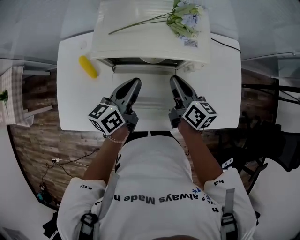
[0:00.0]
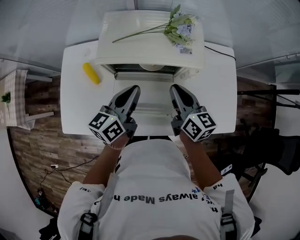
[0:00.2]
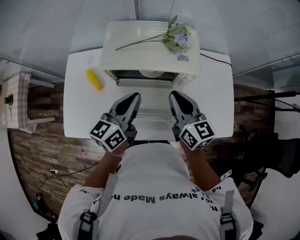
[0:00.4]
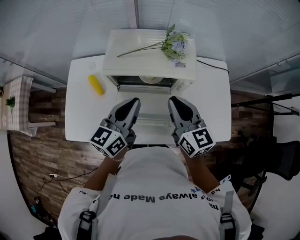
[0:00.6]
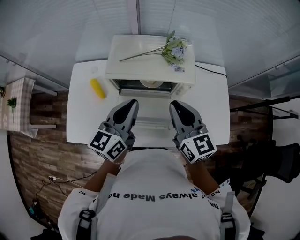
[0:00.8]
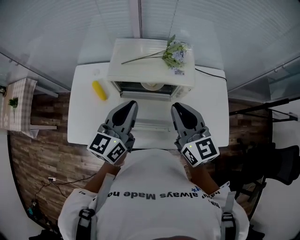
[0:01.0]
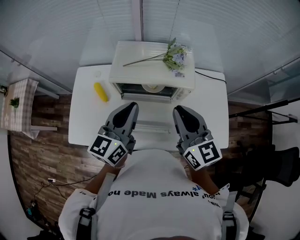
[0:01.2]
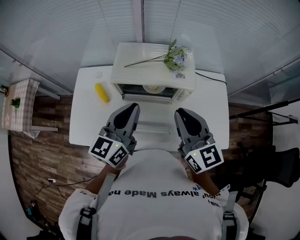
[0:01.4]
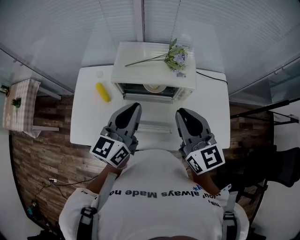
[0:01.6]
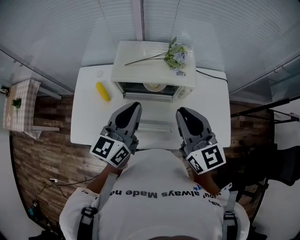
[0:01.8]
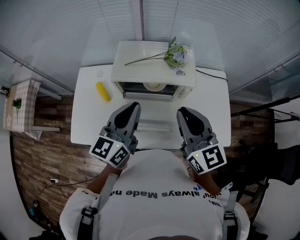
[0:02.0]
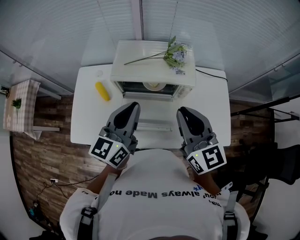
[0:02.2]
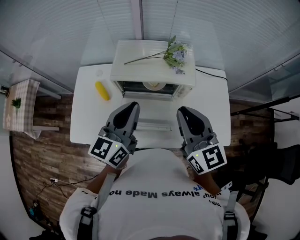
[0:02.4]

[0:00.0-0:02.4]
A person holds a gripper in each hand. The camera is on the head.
0:00.0 to 0:01.2: The two grippers go some 20 cm upward. The left gripper rotates about 30 degrees, while the right gripper turns by approximately 40 degrees.
0:01.2 to 0:02.4: The grippers move only a little.

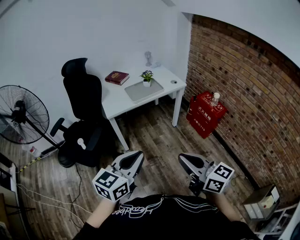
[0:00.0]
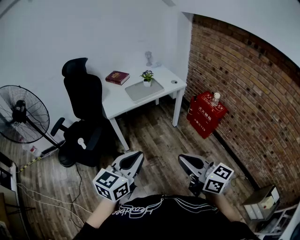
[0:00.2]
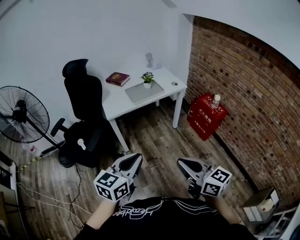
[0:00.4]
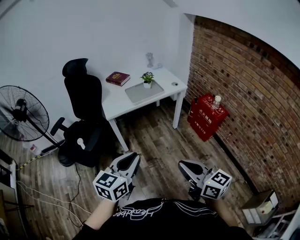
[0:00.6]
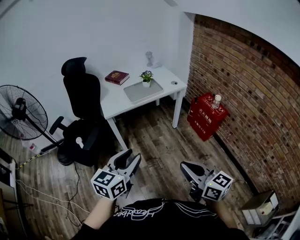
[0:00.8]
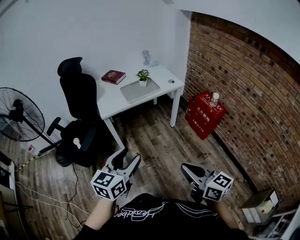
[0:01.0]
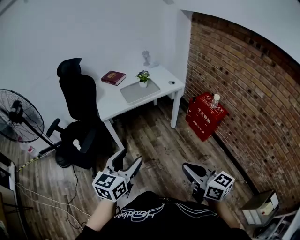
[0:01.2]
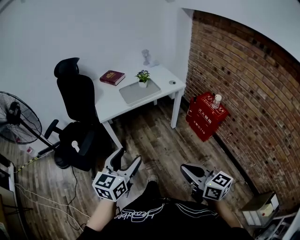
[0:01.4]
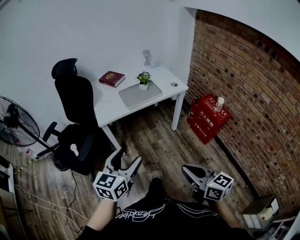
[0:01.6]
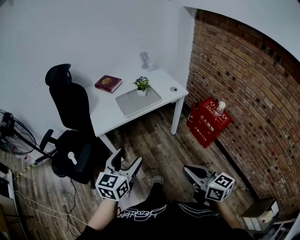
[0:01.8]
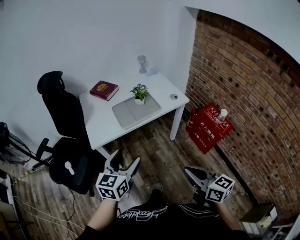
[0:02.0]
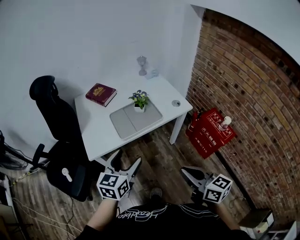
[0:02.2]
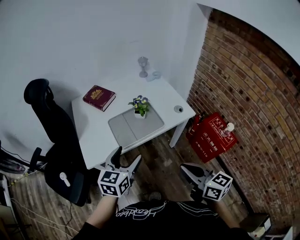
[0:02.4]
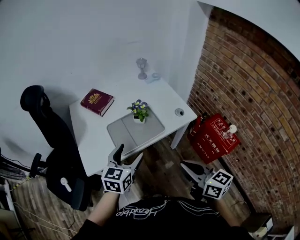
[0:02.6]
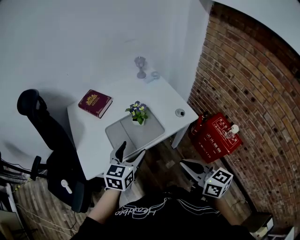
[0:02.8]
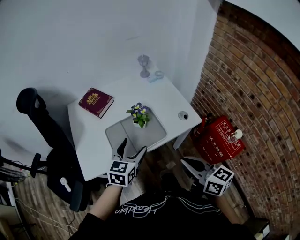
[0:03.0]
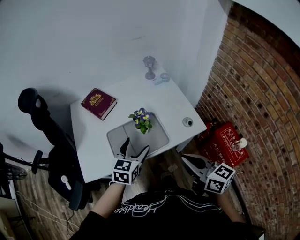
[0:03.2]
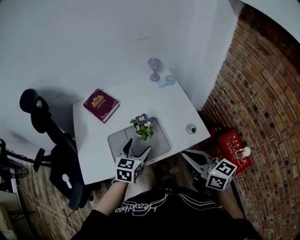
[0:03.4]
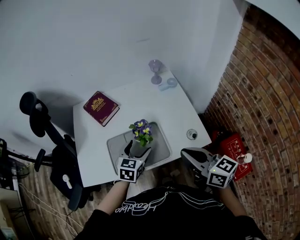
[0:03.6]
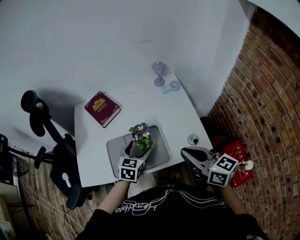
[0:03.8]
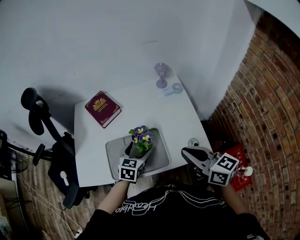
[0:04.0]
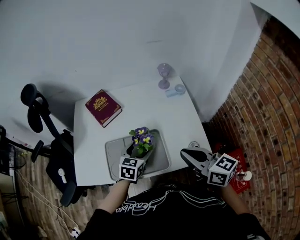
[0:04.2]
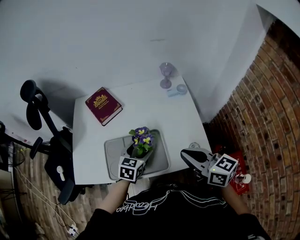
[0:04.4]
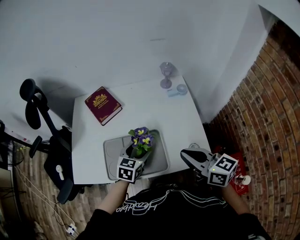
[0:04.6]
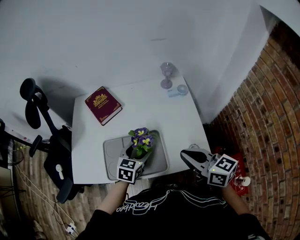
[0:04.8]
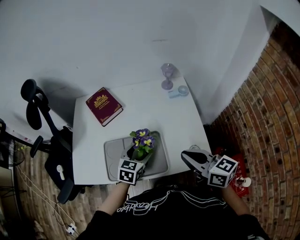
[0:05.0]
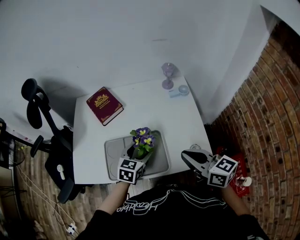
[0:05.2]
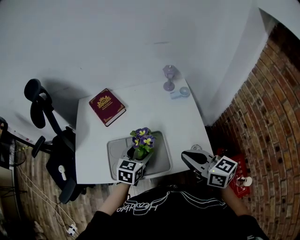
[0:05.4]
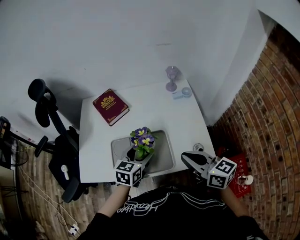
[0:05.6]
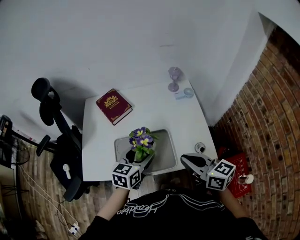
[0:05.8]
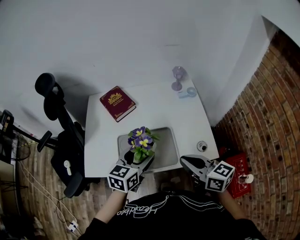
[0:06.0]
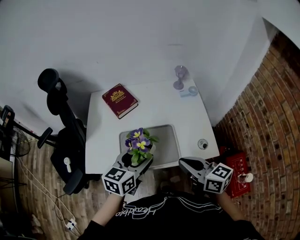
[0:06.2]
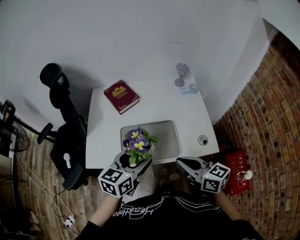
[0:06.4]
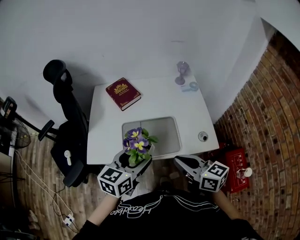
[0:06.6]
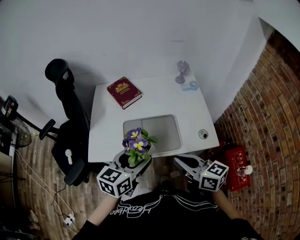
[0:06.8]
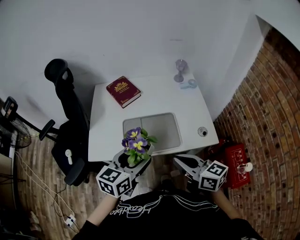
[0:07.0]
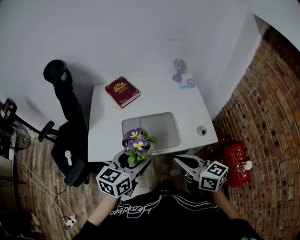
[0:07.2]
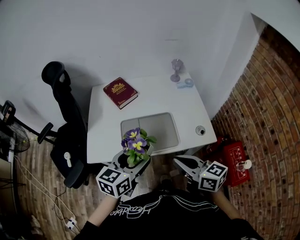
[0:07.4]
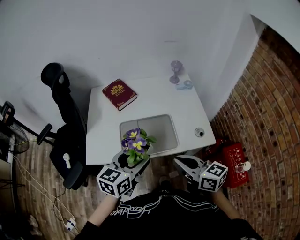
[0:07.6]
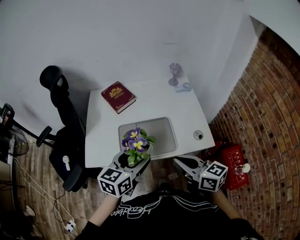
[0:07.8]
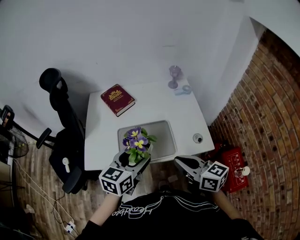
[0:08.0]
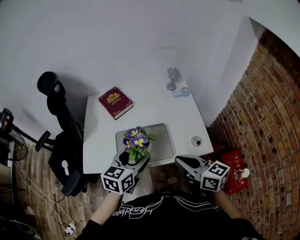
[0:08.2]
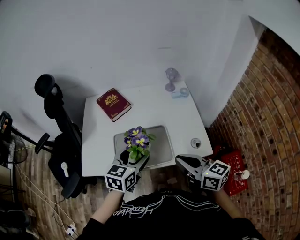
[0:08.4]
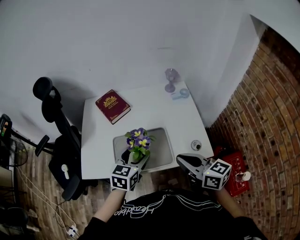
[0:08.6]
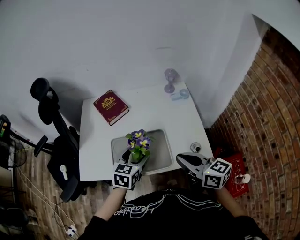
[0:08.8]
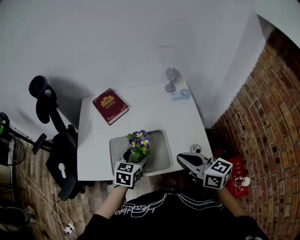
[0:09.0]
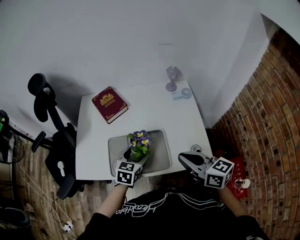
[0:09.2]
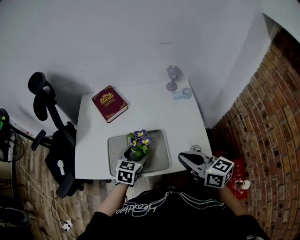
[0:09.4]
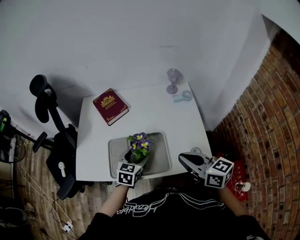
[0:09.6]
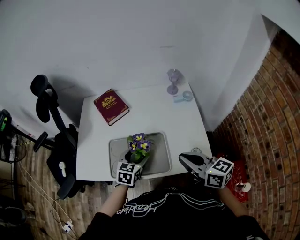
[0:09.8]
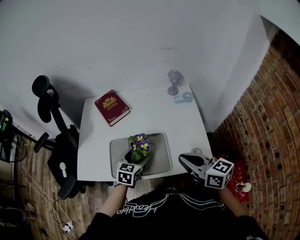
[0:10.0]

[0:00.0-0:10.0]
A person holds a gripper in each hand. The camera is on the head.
0:00.0 to 0:01.4: The left gripper goes roughly 10 cm forward and downward, and opens up; the right gripper goes roughly 10 cm downward and to the right.
0:01.4 to 0:02.8: The two grippers travel together, forward, roughly 50 cm.
0:02.8 to 0:04.2: The right gripper shifts some 25 cm forward, and turns by approximately 20 degrees. Meanwhile the left gripper travels forward, downward and to the right by some 20 cm, and rotates some 20 degrees.
0:04.2 to 0:05.8: The left gripper goes about 10 cm upward.
0:05.8 to 0:07.2: The left gripper is displaced backward, to the left and upward by about 15 cm; the right gripper shifts about 15 cm backward and to the left.
0:07.2 to 0:08.6: The left gripper travels forward, to the right and downward by some 15 cm, while the right gripper shifts some 10 cm forward and to the right.
0:08.6 to 0:10.0: The left gripper shifts approximately 10 cm downward. The right gripper shifts by approximately 5 cm.

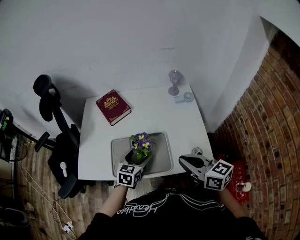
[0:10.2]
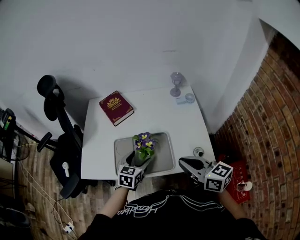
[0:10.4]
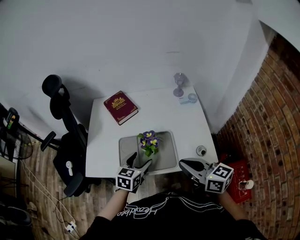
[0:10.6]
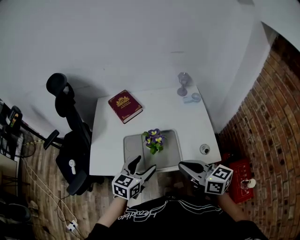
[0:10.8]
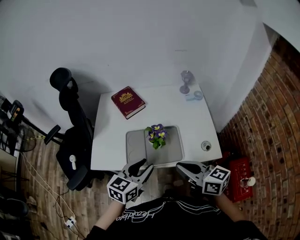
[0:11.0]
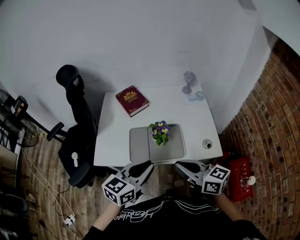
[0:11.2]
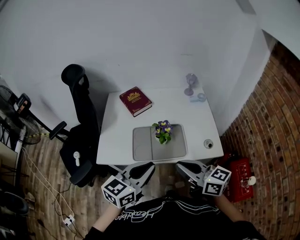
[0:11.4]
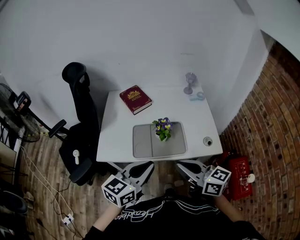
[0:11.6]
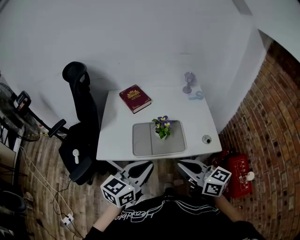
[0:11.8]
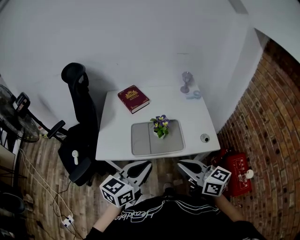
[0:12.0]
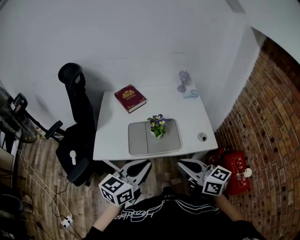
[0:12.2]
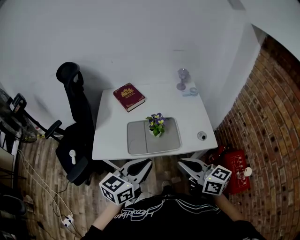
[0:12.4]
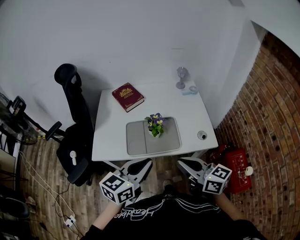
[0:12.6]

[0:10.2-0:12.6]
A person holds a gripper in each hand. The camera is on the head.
0:10.2 to 0:11.4: The left gripper is displaced upward and backward by some 25 cm, changes its angle by about 30 degrees, and closes its fingers. Meanwhile the right gripper goes approximately 15 cm to the left and backward.
0:11.4 to 0:12.6: The grippers stay close to where they were, moving slightly.

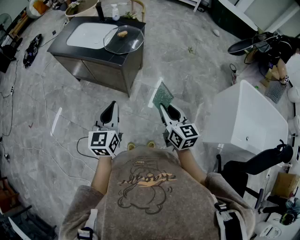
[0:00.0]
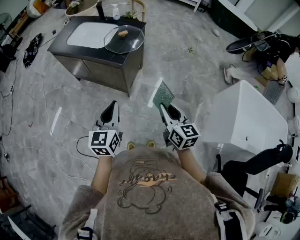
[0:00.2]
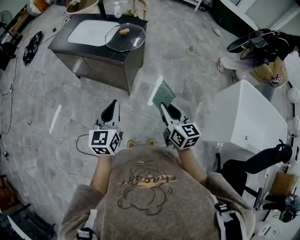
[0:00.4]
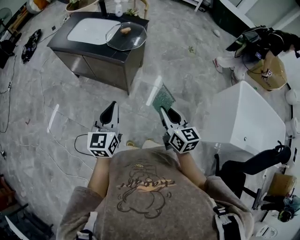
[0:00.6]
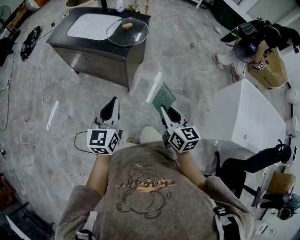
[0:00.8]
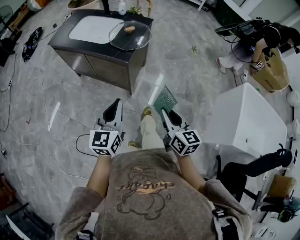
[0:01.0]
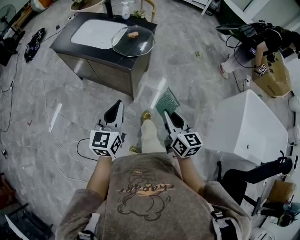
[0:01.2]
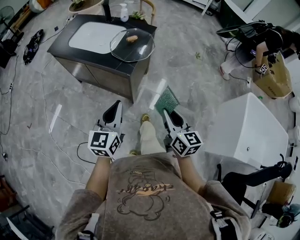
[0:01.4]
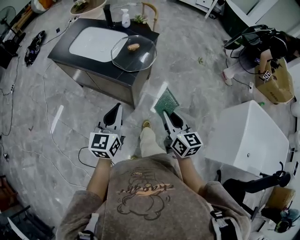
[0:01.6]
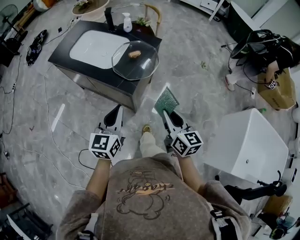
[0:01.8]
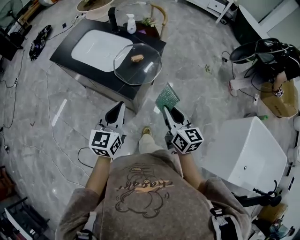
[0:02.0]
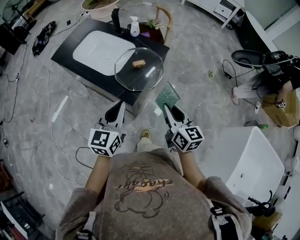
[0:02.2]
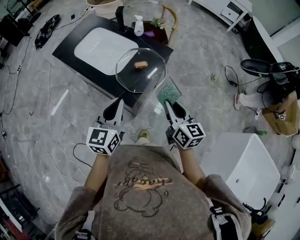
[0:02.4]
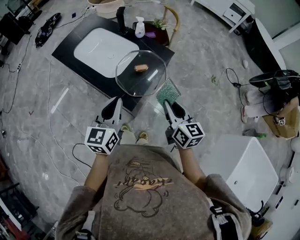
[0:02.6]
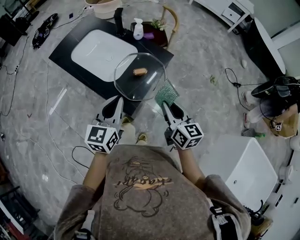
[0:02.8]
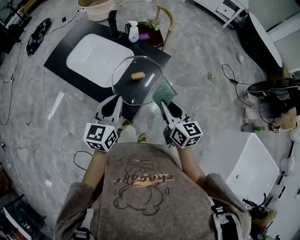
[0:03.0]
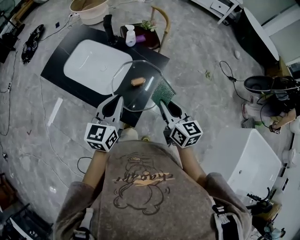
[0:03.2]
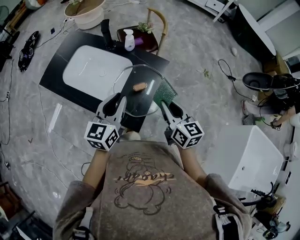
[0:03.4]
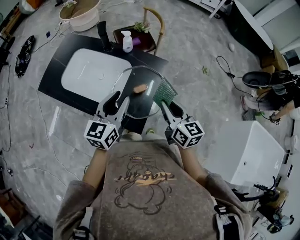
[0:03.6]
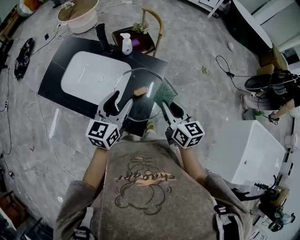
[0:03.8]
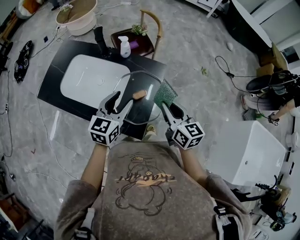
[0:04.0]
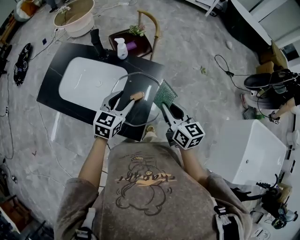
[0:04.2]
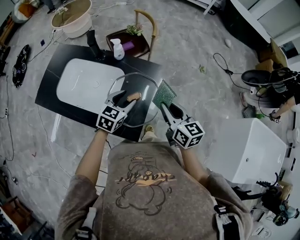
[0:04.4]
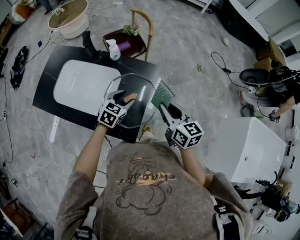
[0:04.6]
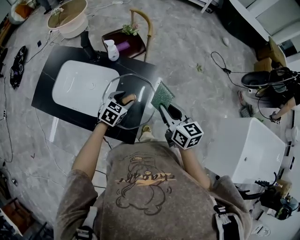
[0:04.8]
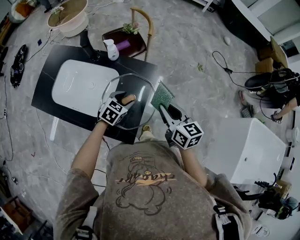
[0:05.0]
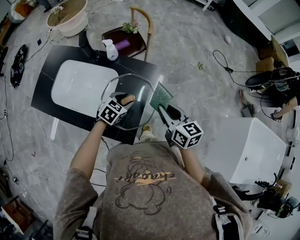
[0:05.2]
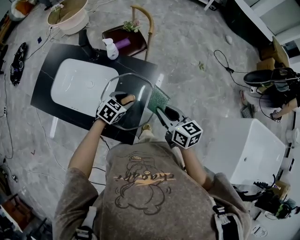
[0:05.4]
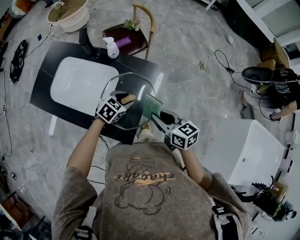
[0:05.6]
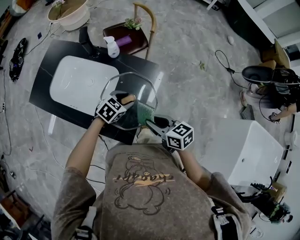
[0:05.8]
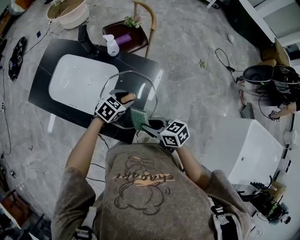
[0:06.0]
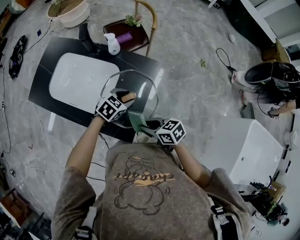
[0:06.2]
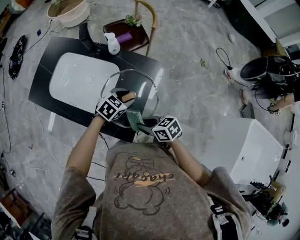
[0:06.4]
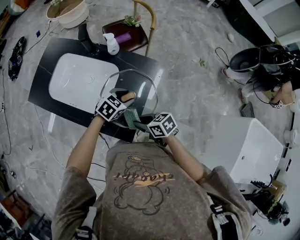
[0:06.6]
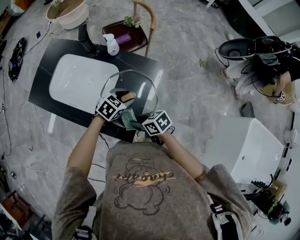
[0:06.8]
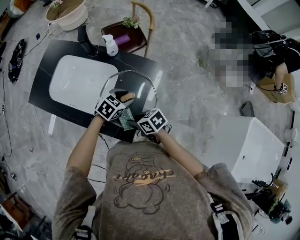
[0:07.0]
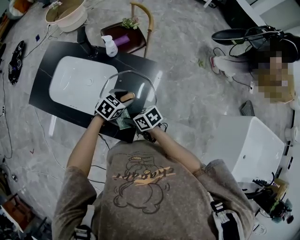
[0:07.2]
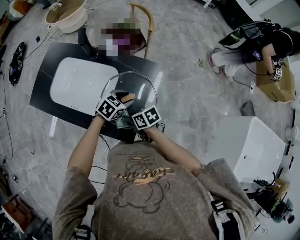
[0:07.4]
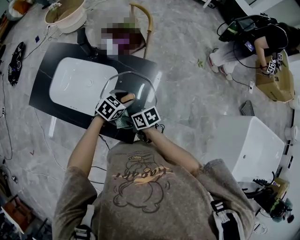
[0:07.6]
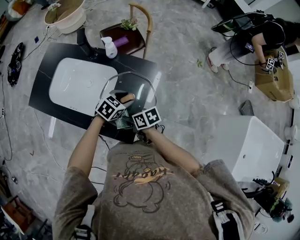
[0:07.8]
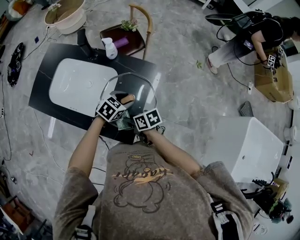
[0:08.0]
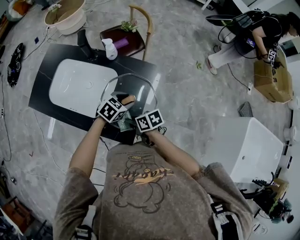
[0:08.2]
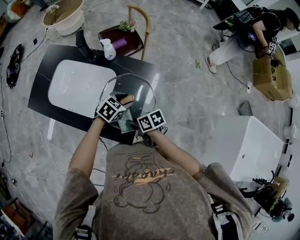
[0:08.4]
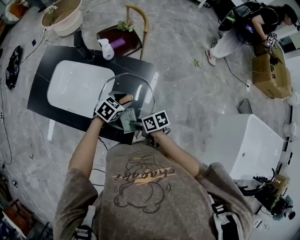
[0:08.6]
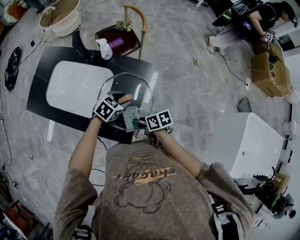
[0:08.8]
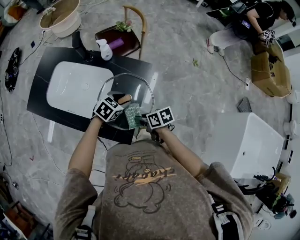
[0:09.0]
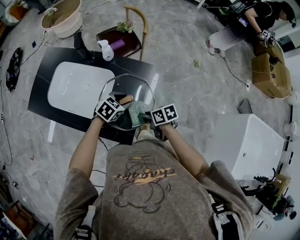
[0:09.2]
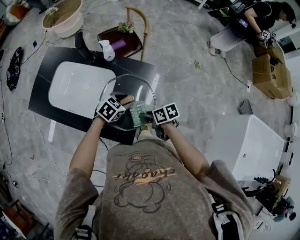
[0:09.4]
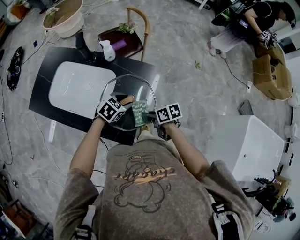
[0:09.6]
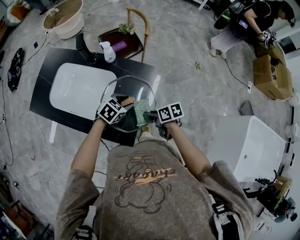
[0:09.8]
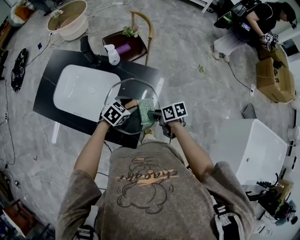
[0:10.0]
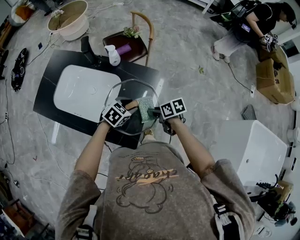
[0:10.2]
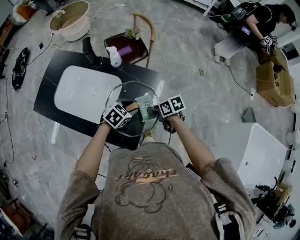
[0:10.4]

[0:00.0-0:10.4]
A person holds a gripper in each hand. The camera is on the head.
0:00.0 to 0:01.4: Both grippers move forward, roughly 10 cm.
0:01.4 to 0:03.0: Both grippers move forward, about 35 cm.
0:03.0 to 0:04.4: The right gripper heads forward, covering some 10 cm. Meanwhile the left gripper travels forward and downward by some 20 cm, changes its angle by approximately 40 degrees, and opens its fingers.
0:04.4 to 0:06.0: Both grippers travel together downward, approximately 10 cm. The left gripper turns by roughly 20 degrees; the right gripper changes its angle by some 40 degrees.
0:06.0 to 0:07.4: The right gripper moves some 10 cm.
0:07.4 to 0:09.0: The right gripper shifts by about 10 cm.
0:09.0 to 0:10.4: The right gripper moves approximately 10 cm.
